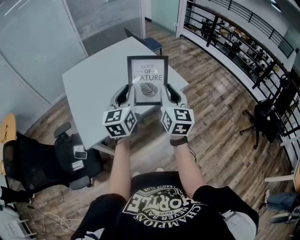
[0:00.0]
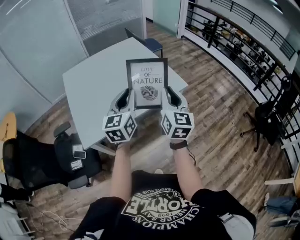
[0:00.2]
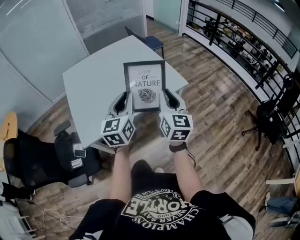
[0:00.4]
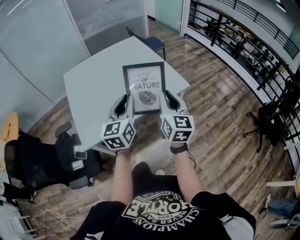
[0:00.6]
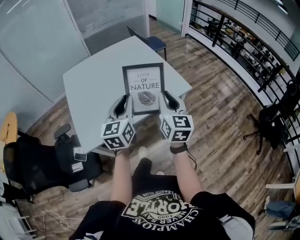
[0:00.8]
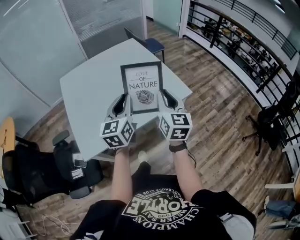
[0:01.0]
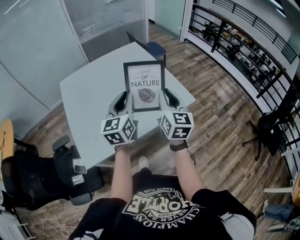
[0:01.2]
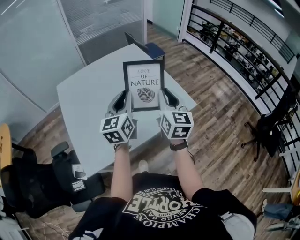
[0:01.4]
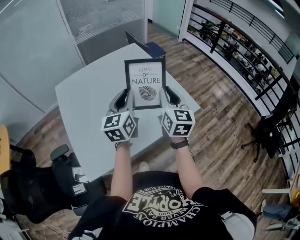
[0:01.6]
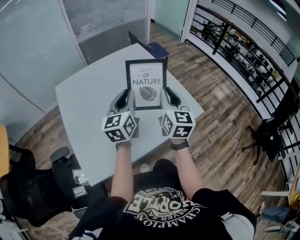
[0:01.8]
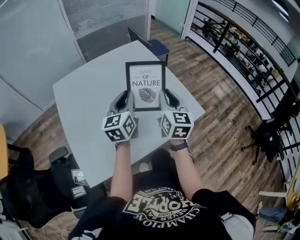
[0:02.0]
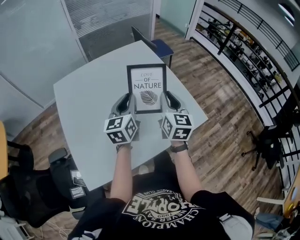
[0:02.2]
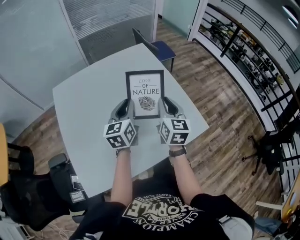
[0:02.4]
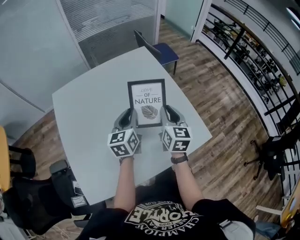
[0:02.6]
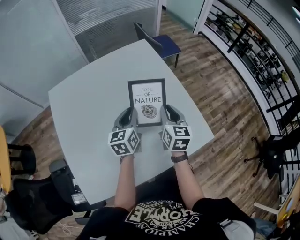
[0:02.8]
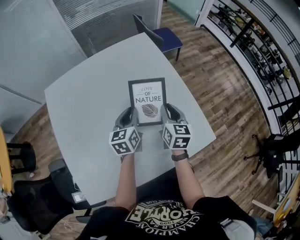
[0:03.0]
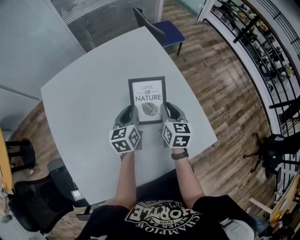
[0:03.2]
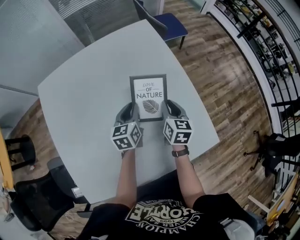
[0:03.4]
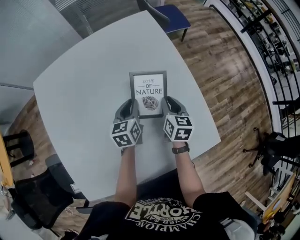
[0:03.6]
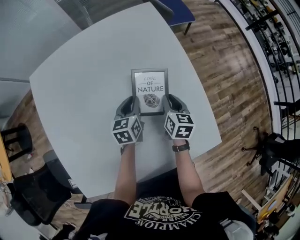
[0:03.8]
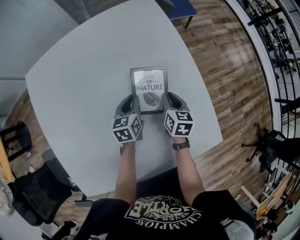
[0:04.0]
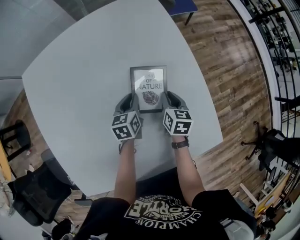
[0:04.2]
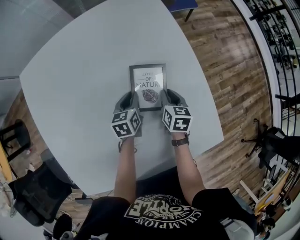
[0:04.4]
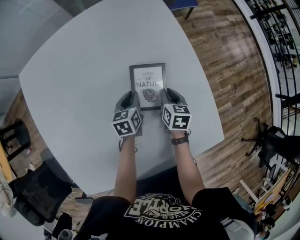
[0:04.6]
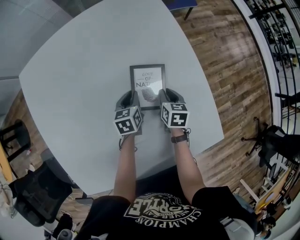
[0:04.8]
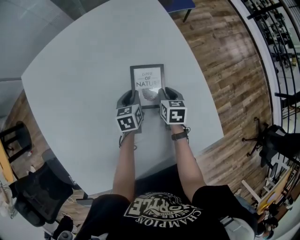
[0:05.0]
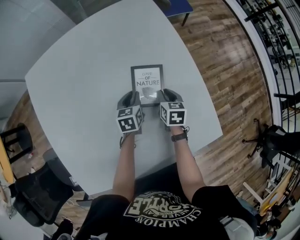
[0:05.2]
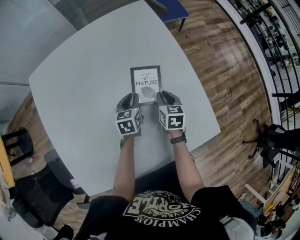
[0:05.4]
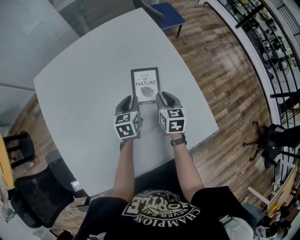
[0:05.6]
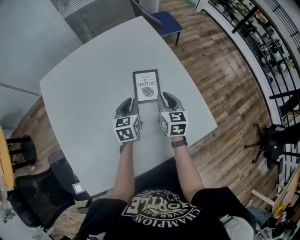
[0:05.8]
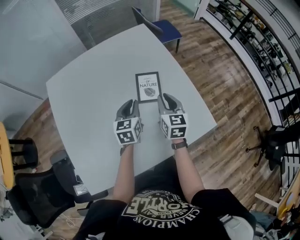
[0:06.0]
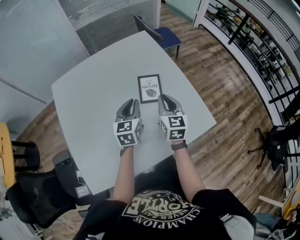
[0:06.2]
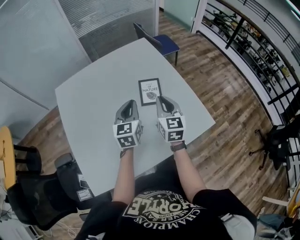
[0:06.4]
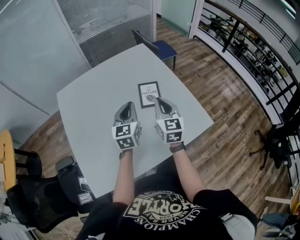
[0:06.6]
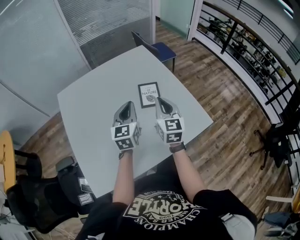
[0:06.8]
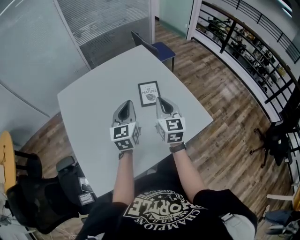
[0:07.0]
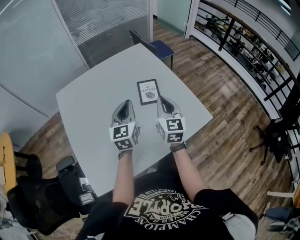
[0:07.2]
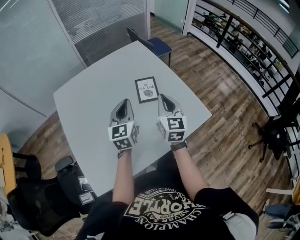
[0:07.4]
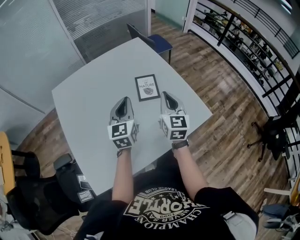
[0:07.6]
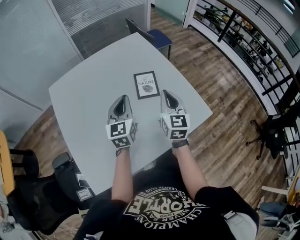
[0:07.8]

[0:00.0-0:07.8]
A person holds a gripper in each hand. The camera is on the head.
0:00.0 to 0:01.6: Both grippers move forward, approximately 20 cm.
0:01.6 to 0:03.2: The two grippers go approximately 30 cm forward and downward. The right gripper turns by roughly 20 degrees, while the left gripper changes its angle by some 30 degrees.
0:03.2 to 0:04.6: Both grippers travel together downward, about 20 cm. The right gripper turns by about 20 degrees.
0:04.6 to 0:06.2: The two grippers go approximately 25 cm upward and backward. The right gripper angles its fingers upward, by roughly 30 degrees; the left gripper changes its angle by approximately 30 degrees.
0:06.2 to 0:07.8: The left gripper heads upward, covering approximately 5 cm.

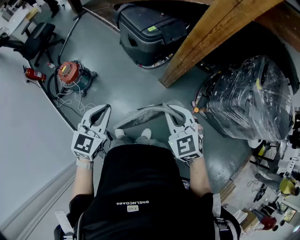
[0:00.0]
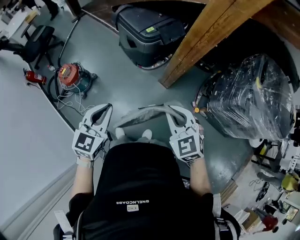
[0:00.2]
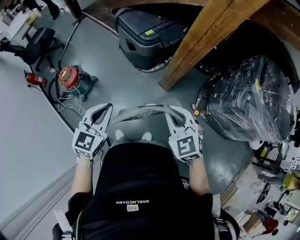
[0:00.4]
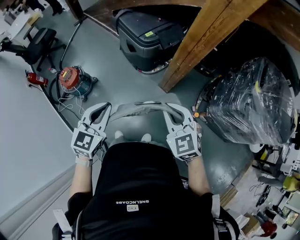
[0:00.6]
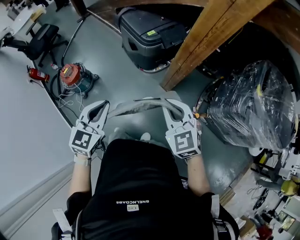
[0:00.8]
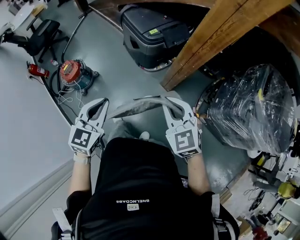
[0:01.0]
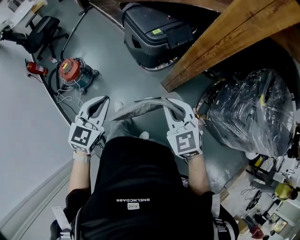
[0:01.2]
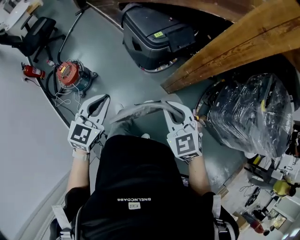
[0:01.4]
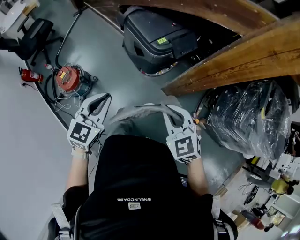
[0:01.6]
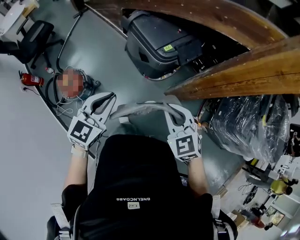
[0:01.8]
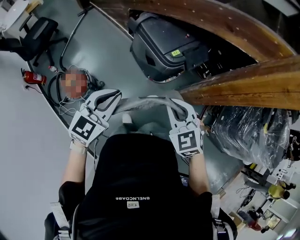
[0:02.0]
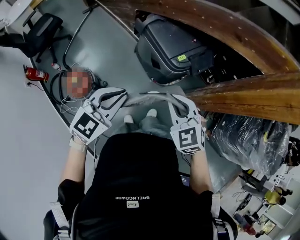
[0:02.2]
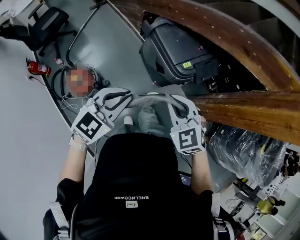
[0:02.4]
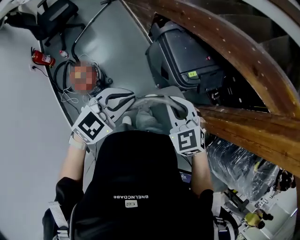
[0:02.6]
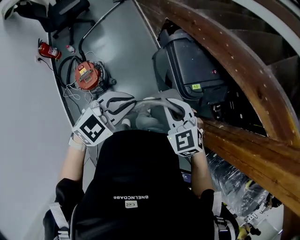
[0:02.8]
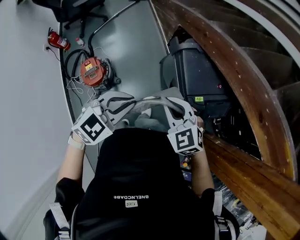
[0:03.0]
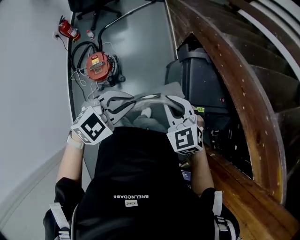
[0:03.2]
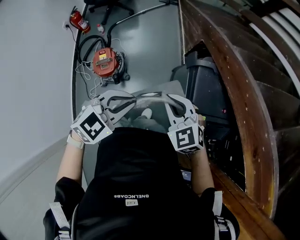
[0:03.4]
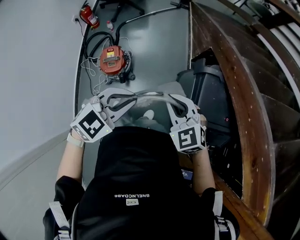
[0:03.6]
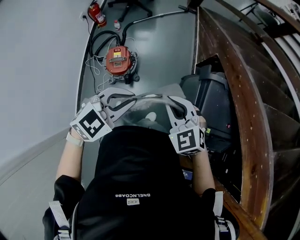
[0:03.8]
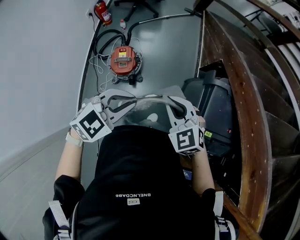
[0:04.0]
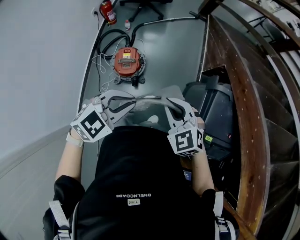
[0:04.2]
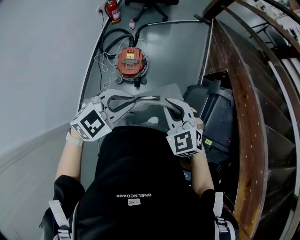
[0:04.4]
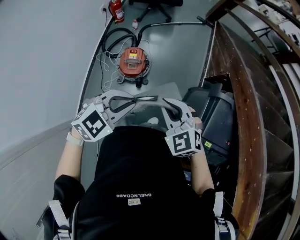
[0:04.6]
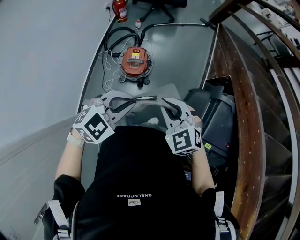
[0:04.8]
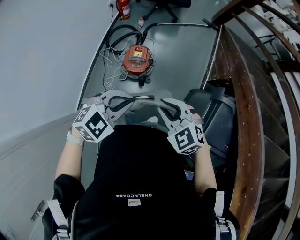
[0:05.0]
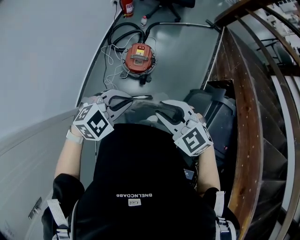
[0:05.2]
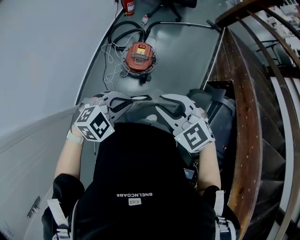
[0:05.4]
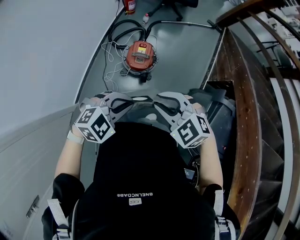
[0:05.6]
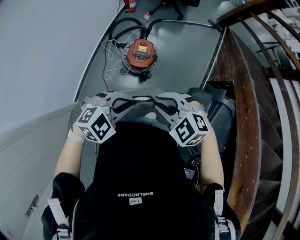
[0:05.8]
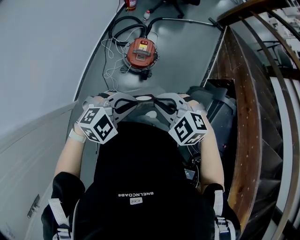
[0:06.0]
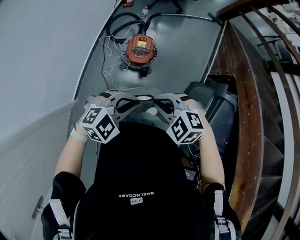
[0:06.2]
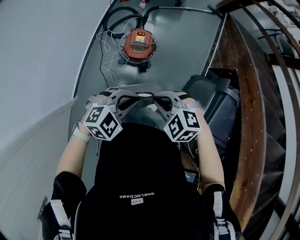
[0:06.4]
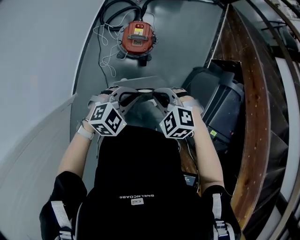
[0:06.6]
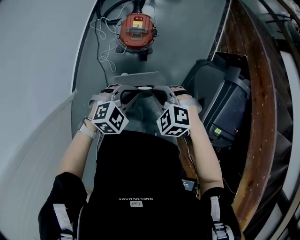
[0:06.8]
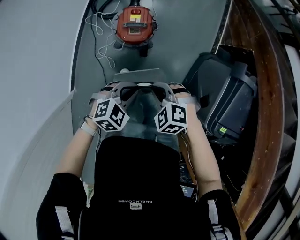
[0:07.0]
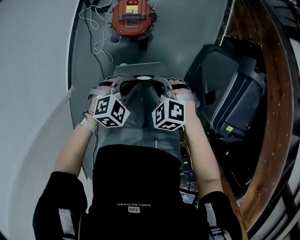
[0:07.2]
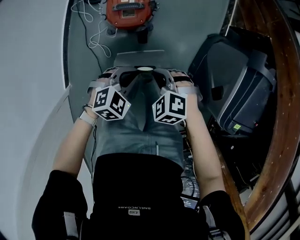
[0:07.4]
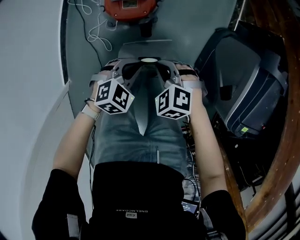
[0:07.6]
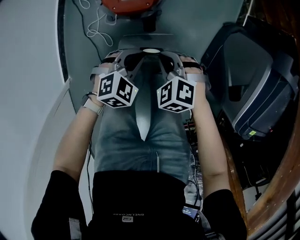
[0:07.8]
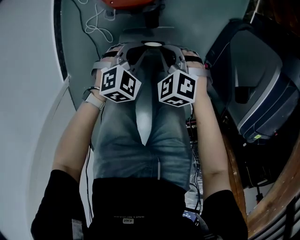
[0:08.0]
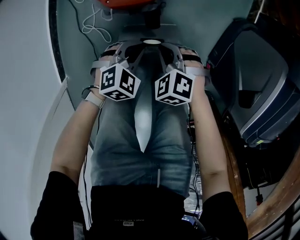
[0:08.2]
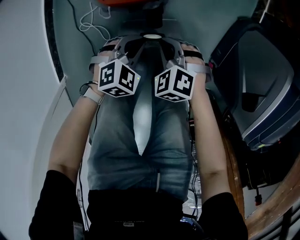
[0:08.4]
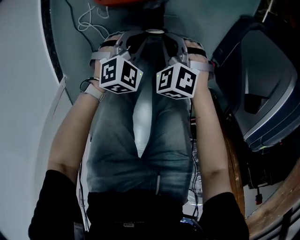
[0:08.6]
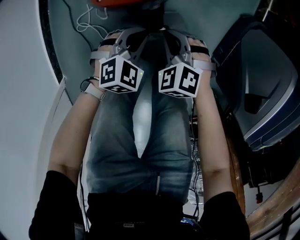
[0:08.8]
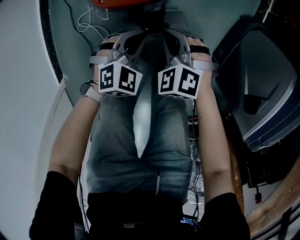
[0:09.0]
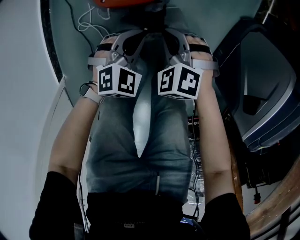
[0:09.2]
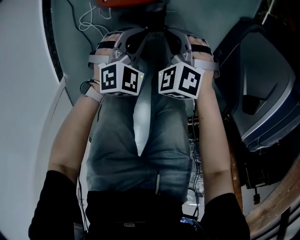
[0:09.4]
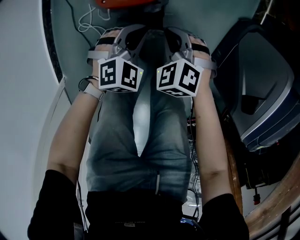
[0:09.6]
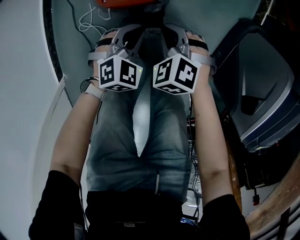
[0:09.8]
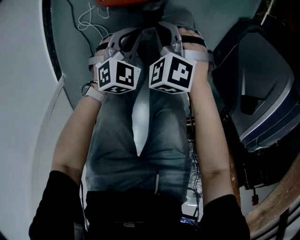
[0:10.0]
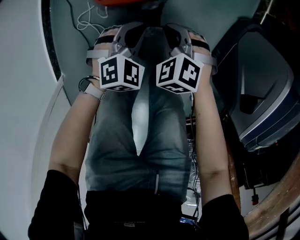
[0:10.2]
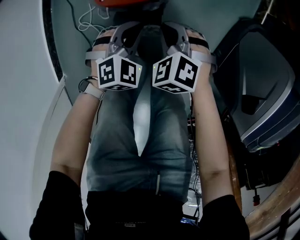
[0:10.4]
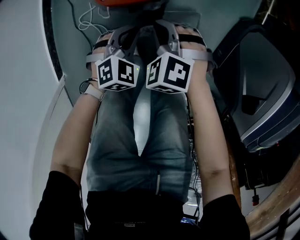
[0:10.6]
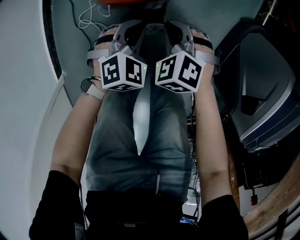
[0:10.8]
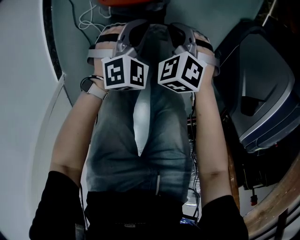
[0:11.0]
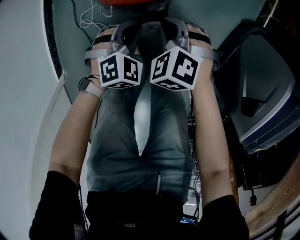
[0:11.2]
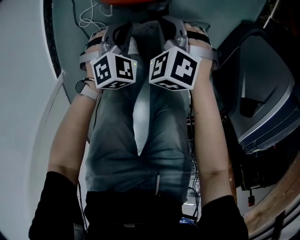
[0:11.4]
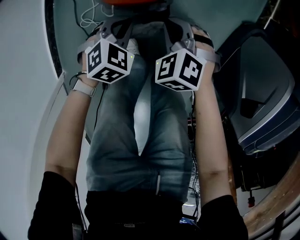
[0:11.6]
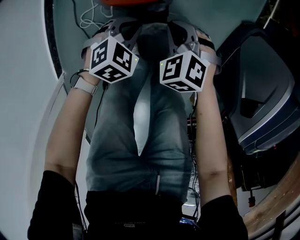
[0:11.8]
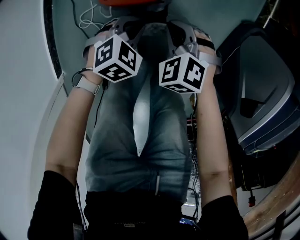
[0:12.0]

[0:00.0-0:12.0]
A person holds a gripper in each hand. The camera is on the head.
0:00.0 to 0:01.6: The left gripper shifts about 20 cm forward, while the right gripper heads forward and to the left, covering some 20 cm.
0:01.6 to 0:03.0: The grippers both shift forward and to the left by roughly 35 cm. The right gripper turns by about 30 degrees.
0:03.0 to 0:04.4: The right gripper moves roughly 25 cm, and turns by roughly 30 degrees. The left gripper ends up approximately 20 cm from where it was, and swivels some 30 degrees.
0:04.4 to 0:06.0: The right gripper ends up approximately 15 cm from where it was, and swivels some 40 degrees. Meanwhile the left gripper ends up approximately 10 cm from where it was.
0:06.0 to 0:07.6: Both grippers move downward, some 50 cm. The right gripper swivels roughly 30 degrees.
0:07.6 to 0:09.0: The two grippers go about 20 cm downward.
0:09.0 to 0:10.4: The grippers move only a little.
0:10.4 to 0:12.0: The grippers move only a little.

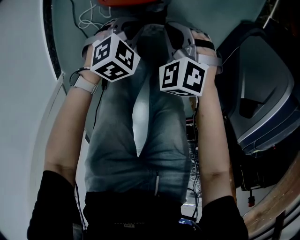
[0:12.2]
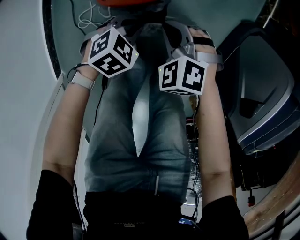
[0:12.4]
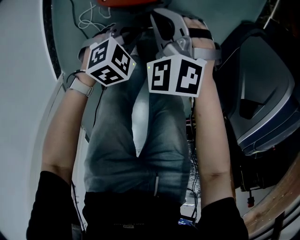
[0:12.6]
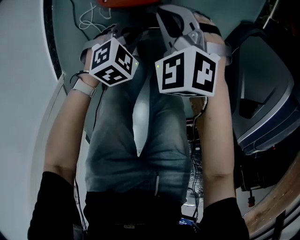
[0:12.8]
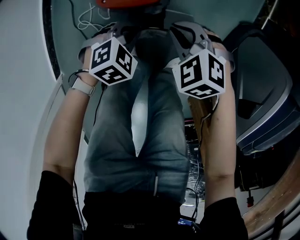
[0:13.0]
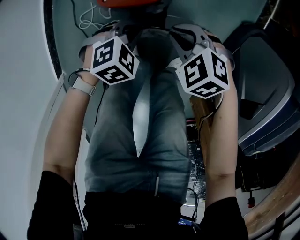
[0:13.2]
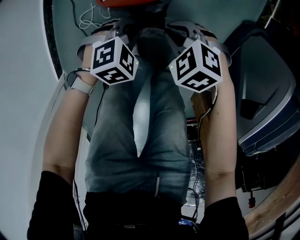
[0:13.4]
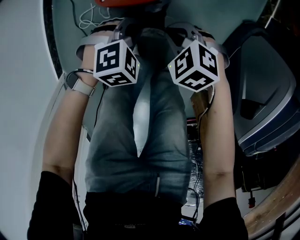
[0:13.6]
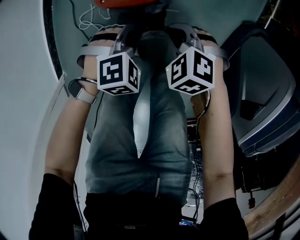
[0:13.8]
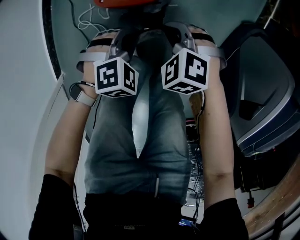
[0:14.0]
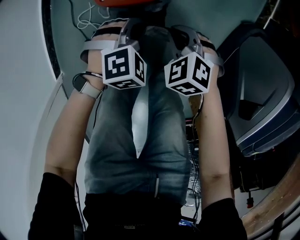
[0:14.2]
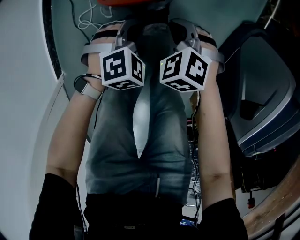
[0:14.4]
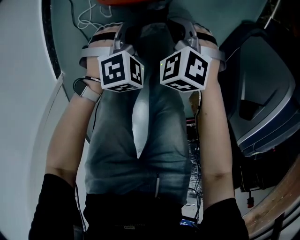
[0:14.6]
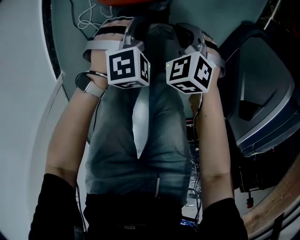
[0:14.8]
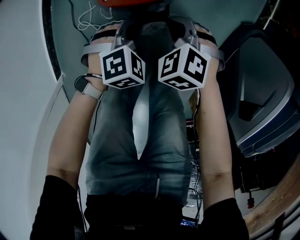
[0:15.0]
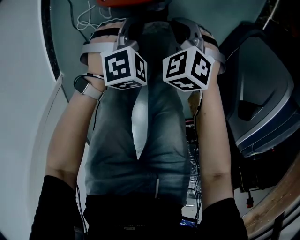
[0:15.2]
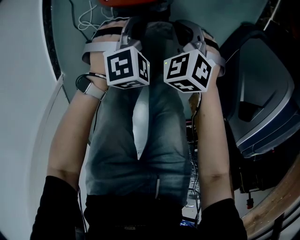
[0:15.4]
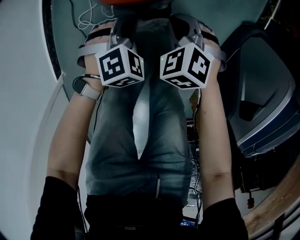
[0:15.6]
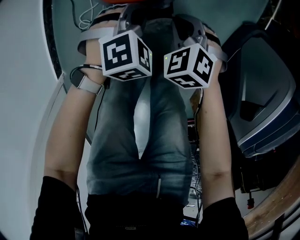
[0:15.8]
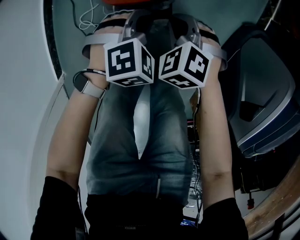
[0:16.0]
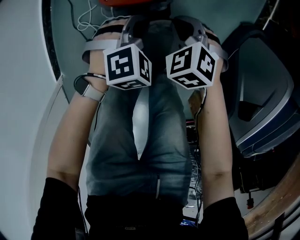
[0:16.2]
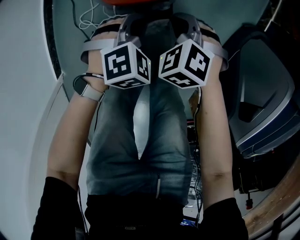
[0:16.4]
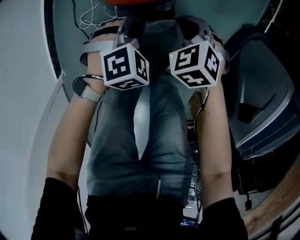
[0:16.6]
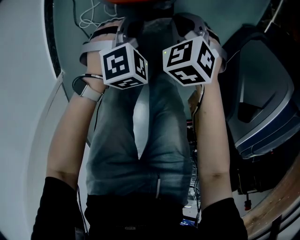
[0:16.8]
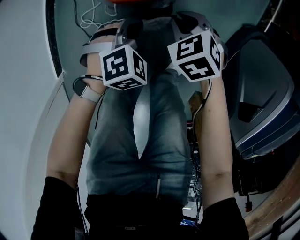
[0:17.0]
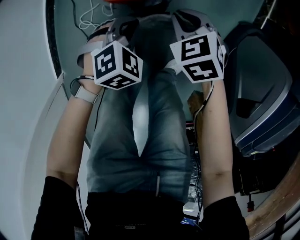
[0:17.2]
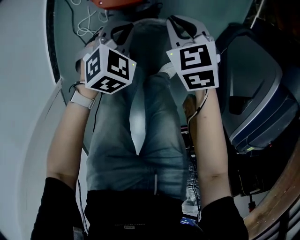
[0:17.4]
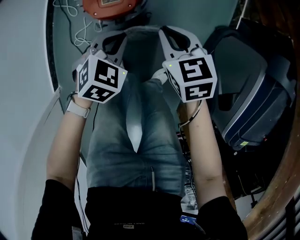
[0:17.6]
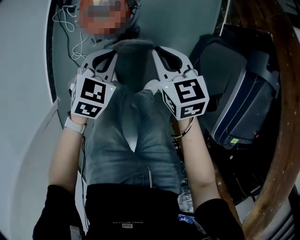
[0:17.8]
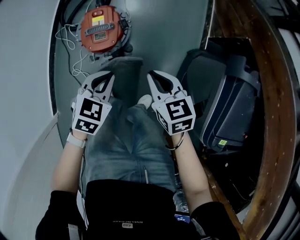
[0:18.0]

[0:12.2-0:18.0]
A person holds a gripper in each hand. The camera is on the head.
0:12.2 to 0:13.6: The right gripper swivels some 20 degrees.
0:13.6 to 0:15.0: The grippers make only small movements.
0:15.0 to 0:16.6: The grippers stay close to where they were, moving slightly.
0:16.6 to 0:18.0: The two grippers go some 30 cm upward. The right gripper changes its angle by roughly 40 degrees. Meanwhile the left gripper turns by roughly 30 degrees.
